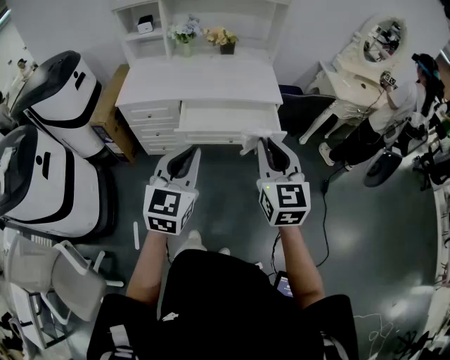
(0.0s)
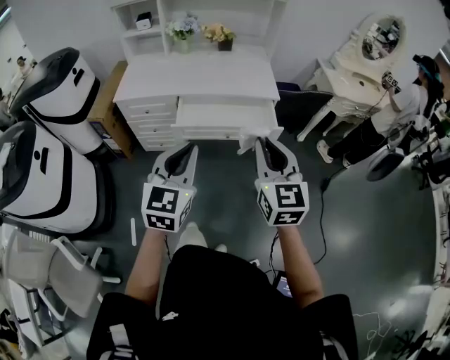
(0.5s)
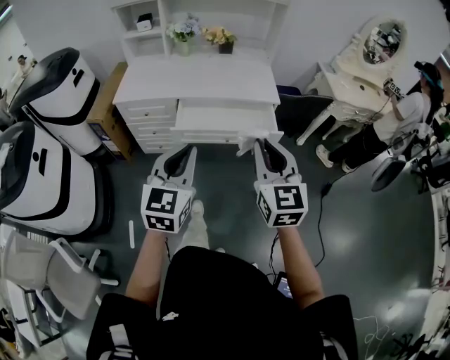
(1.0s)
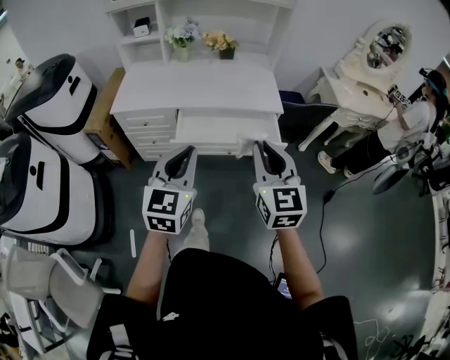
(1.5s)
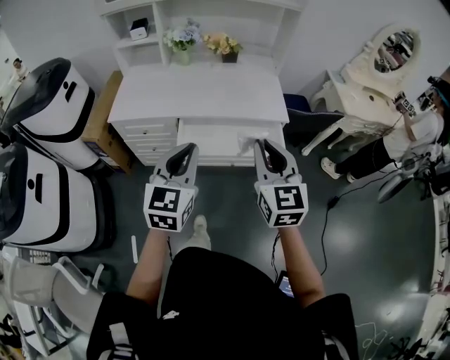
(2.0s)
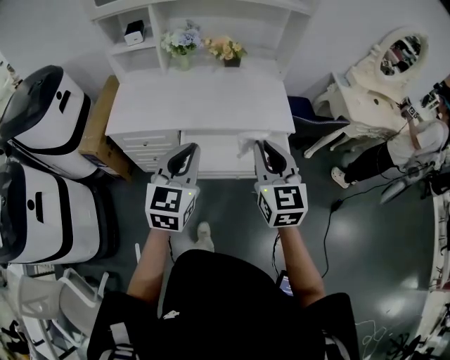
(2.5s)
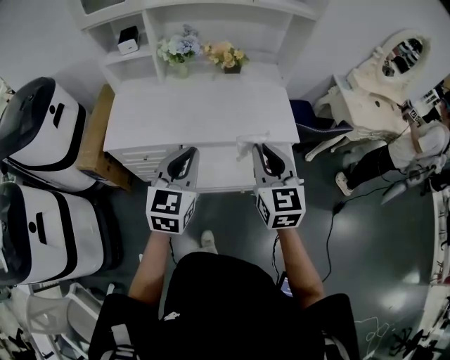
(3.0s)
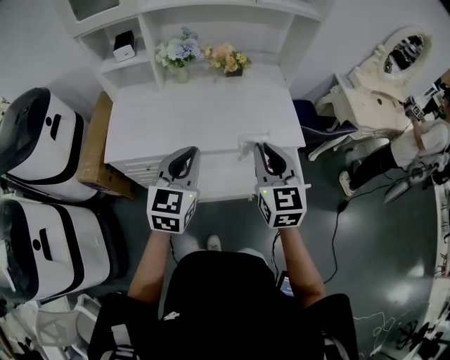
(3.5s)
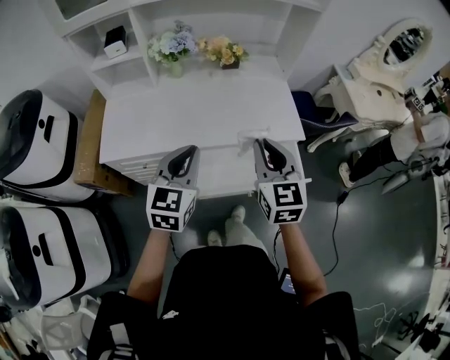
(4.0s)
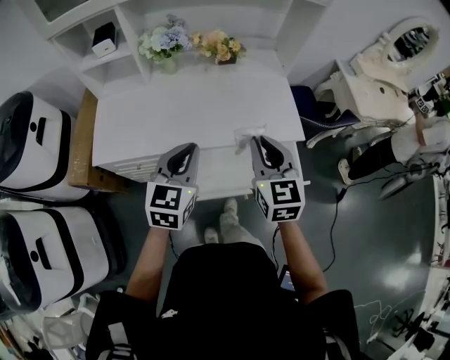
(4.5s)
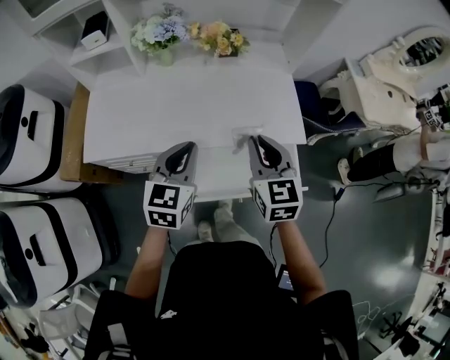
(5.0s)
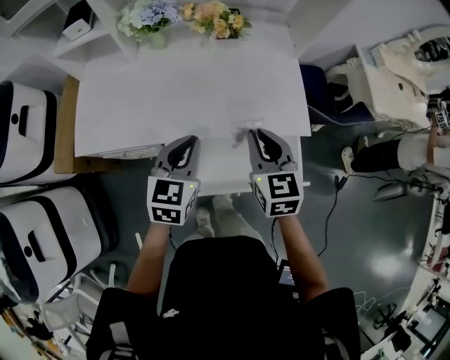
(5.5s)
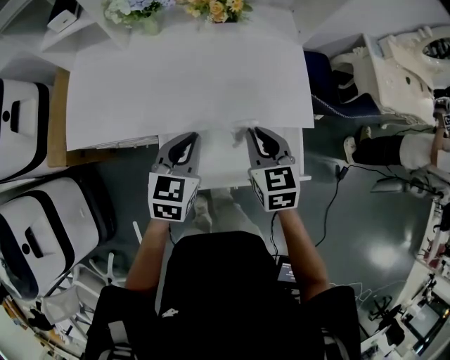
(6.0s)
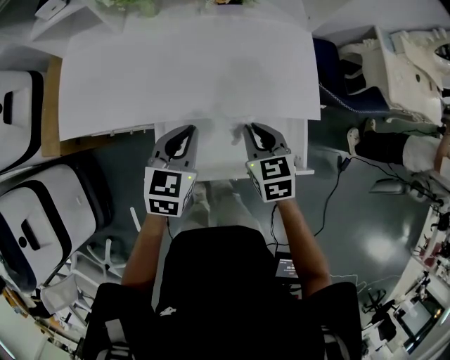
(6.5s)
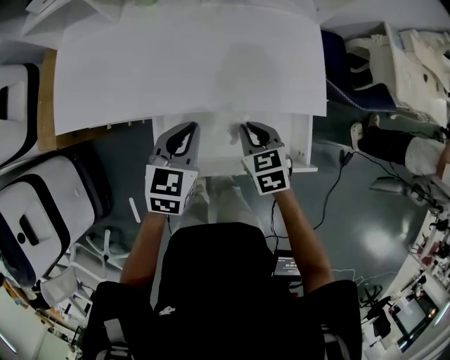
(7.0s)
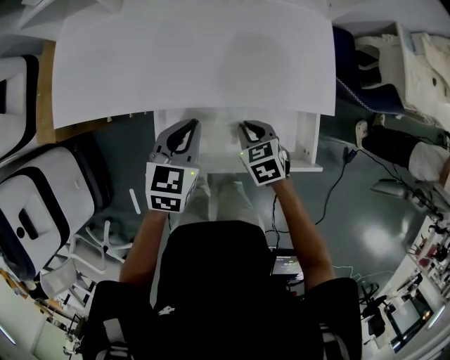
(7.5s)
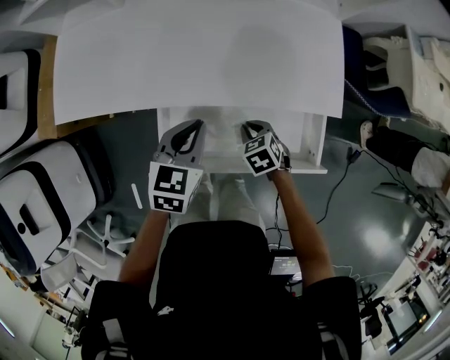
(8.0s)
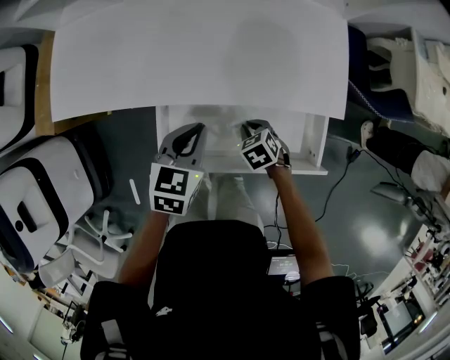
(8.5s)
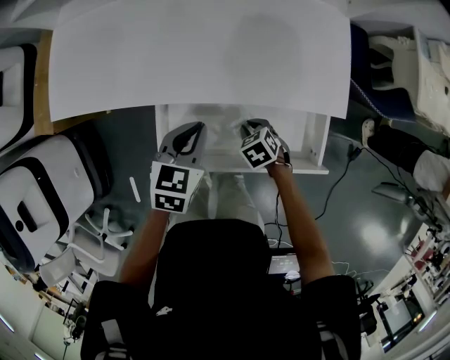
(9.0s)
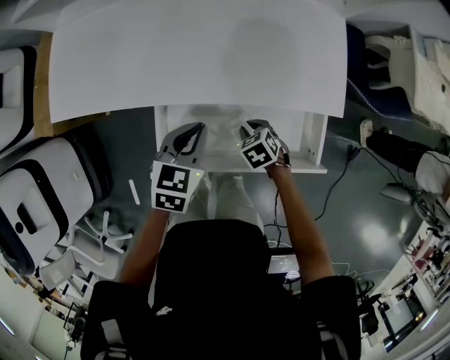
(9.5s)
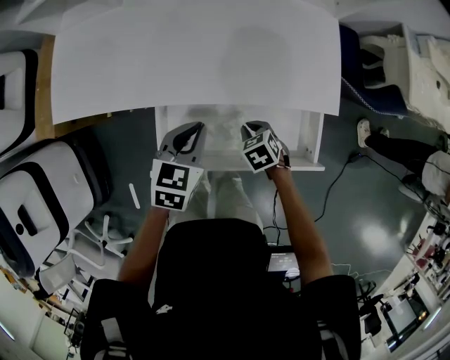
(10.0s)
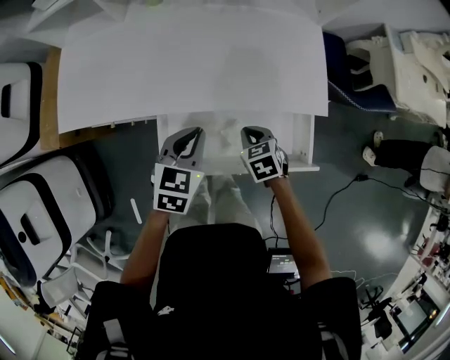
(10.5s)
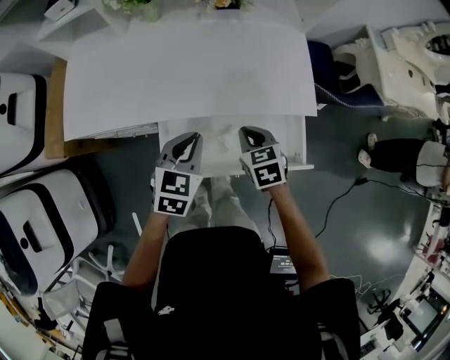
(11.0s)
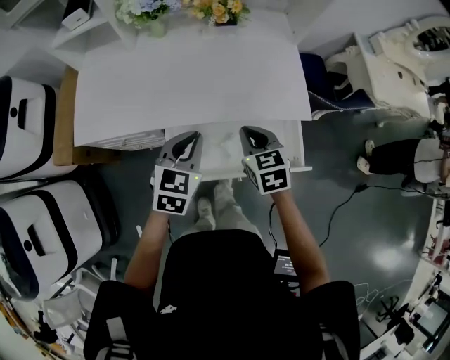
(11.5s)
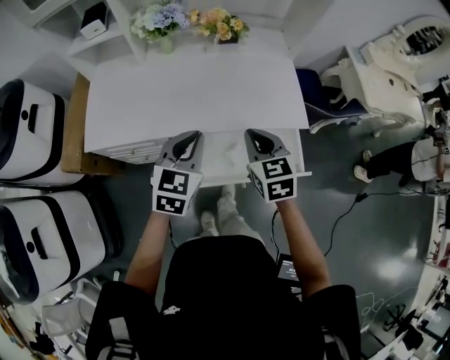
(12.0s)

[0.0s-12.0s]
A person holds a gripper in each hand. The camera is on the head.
0.0s to 2.0s: The two grippers go some 15 cm forward.
2.0s to 4.0s: The grippers both shift forward by roughly 25 cm.
4.0s to 6.0s: The left gripper goes roughly 20 cm downward, forward and to the right. Meanwhile the right gripper shifts roughly 20 cm downward and forward, and rotates roughly 20 degrees.
6.0s to 8.0s: The left gripper travels downward by roughly 10 cm. Meanwhile the right gripper moves downward, roughly 25 cm, and tilts its fingers some 30 degrees downward.
8.0s to 10.0s: The grippers make only small movements.
10.0s to 12.0s: The right gripper goes approximately 30 cm upward, and tips its fingers upward by approximately 40 degrees, while the left gripper shifts some 20 cm upward, and changes its angle by approximately 20 degrees.

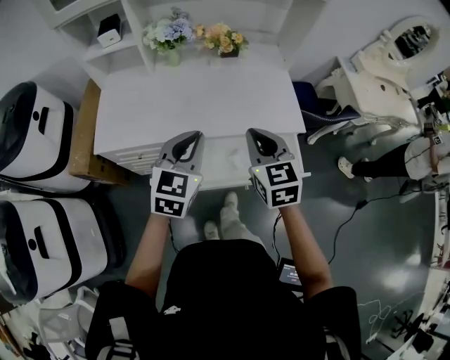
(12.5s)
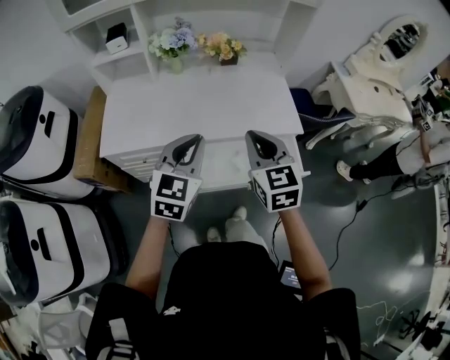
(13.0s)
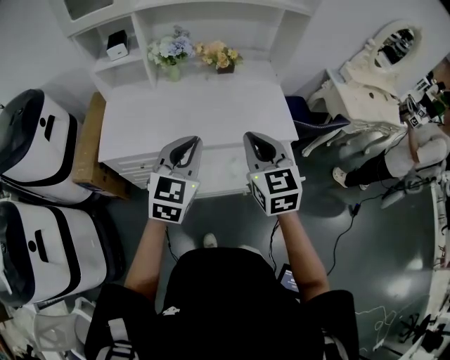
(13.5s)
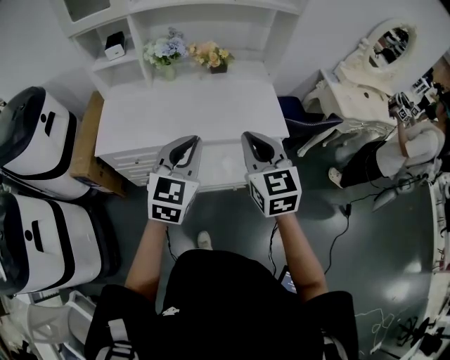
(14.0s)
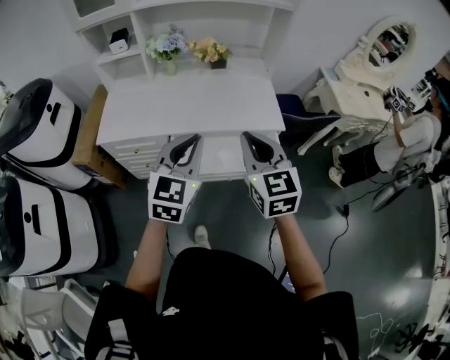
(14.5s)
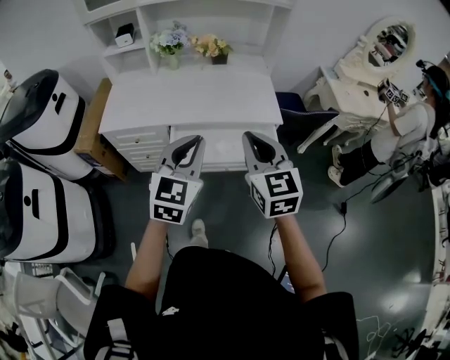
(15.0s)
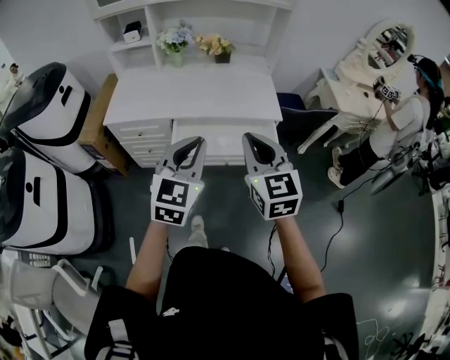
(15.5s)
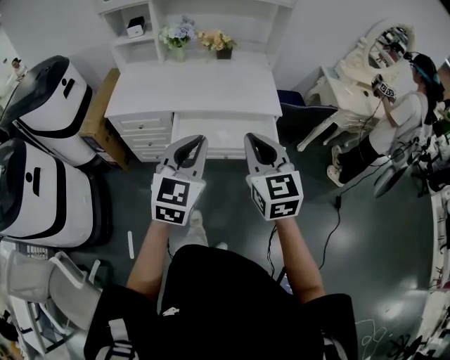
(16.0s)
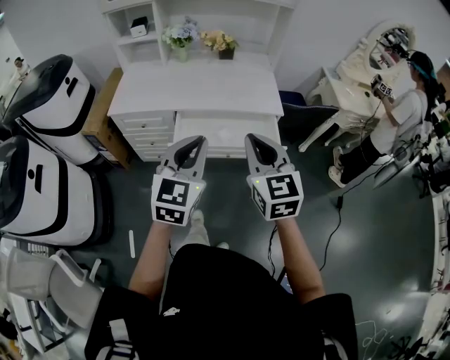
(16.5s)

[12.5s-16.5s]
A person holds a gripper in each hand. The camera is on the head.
12.5s to 14.5s: The two grippers go approximately 20 cm backward, upward and to the right.
14.5s to 16.5s: The grippers both shift backward by approximately 15 cm.

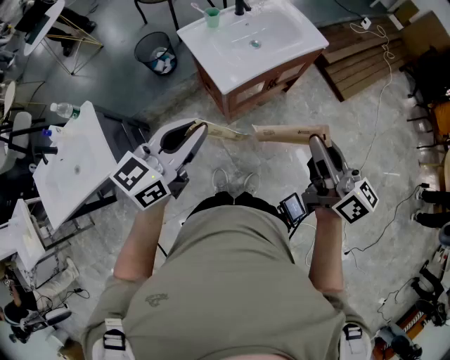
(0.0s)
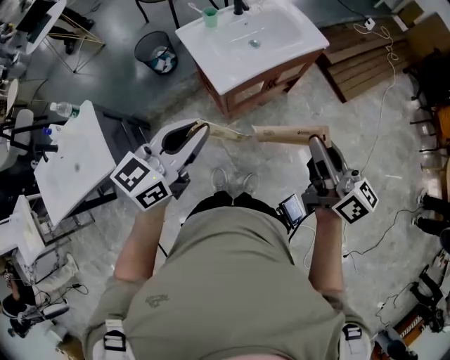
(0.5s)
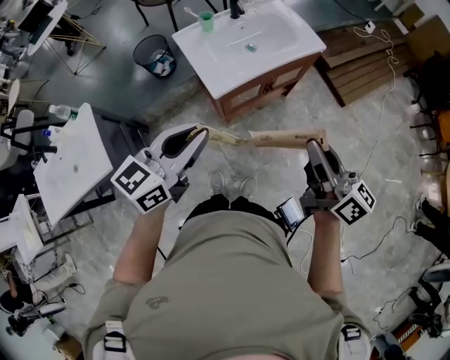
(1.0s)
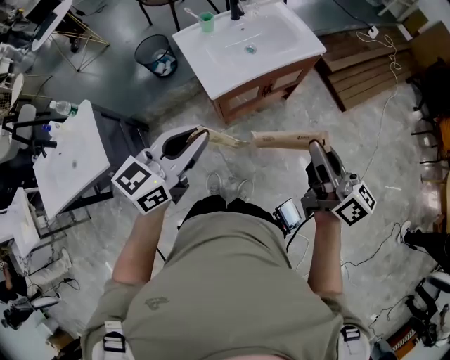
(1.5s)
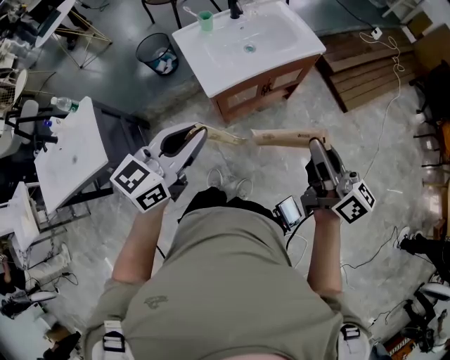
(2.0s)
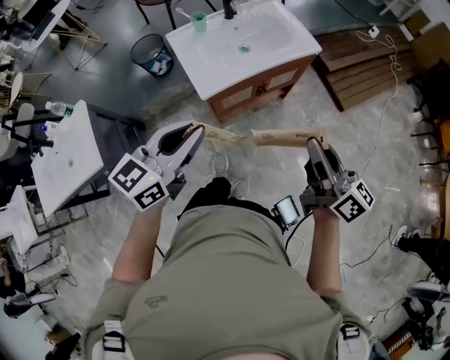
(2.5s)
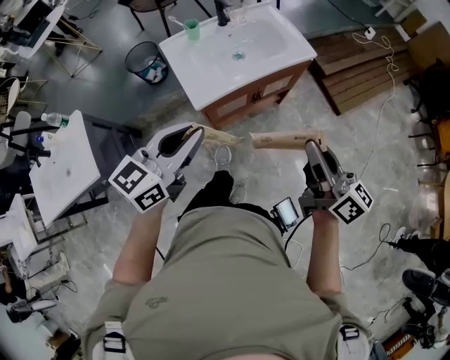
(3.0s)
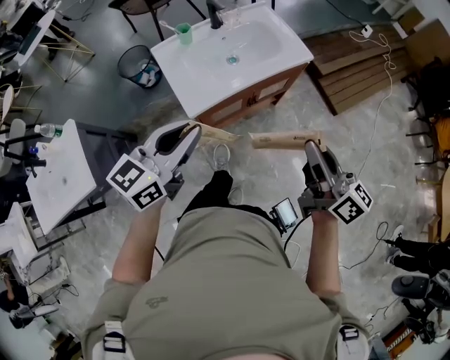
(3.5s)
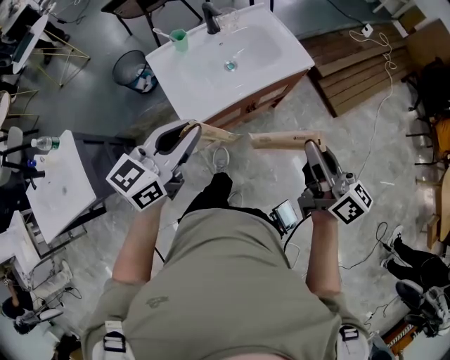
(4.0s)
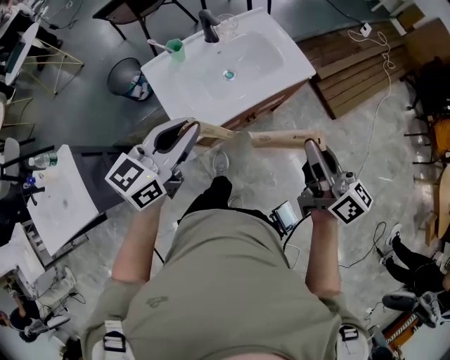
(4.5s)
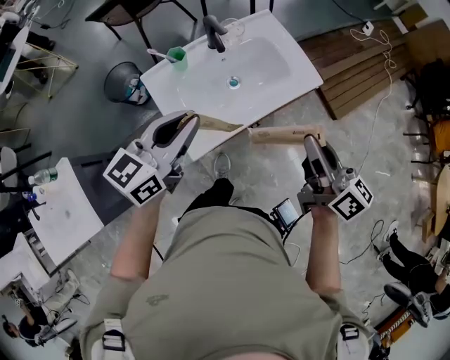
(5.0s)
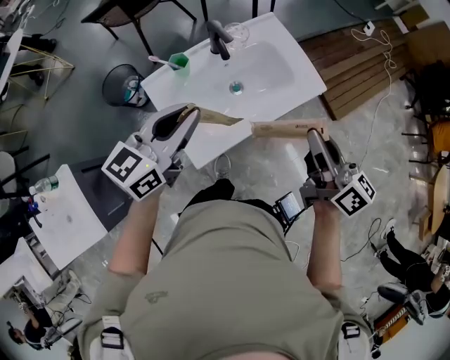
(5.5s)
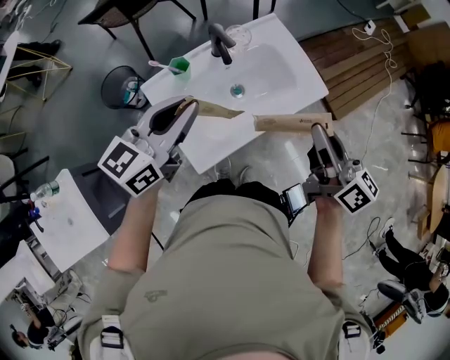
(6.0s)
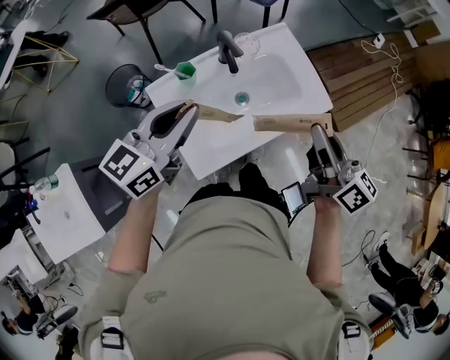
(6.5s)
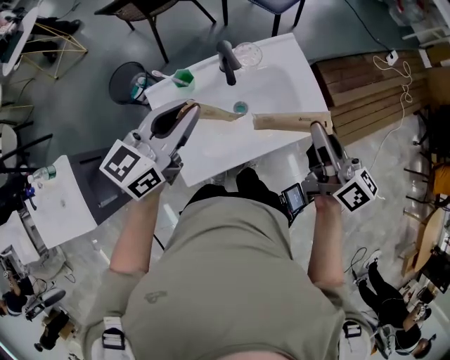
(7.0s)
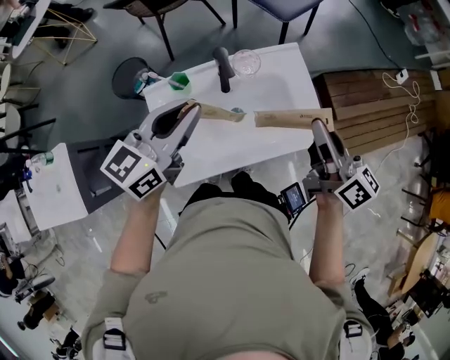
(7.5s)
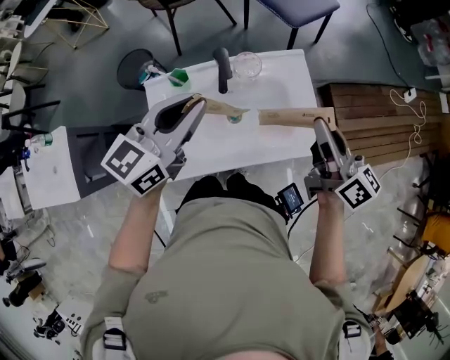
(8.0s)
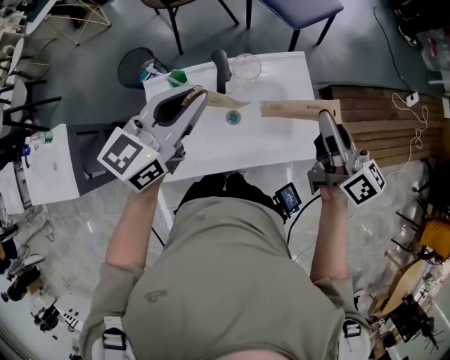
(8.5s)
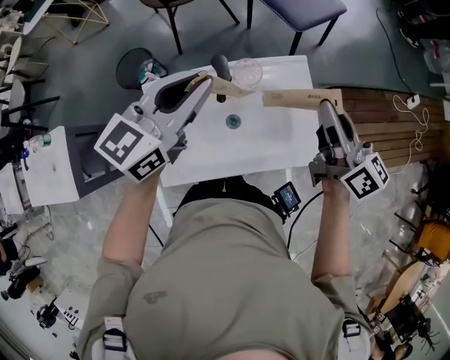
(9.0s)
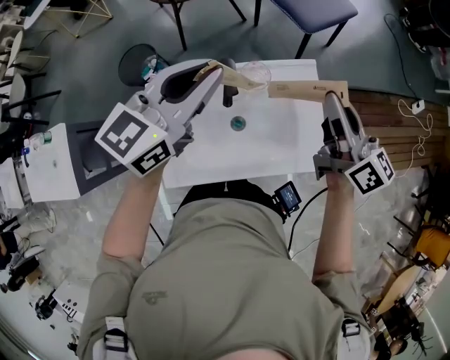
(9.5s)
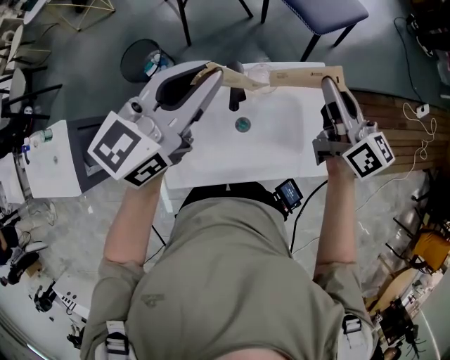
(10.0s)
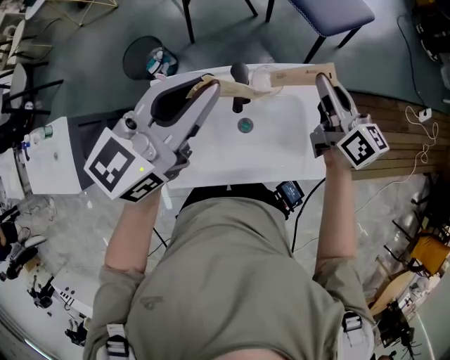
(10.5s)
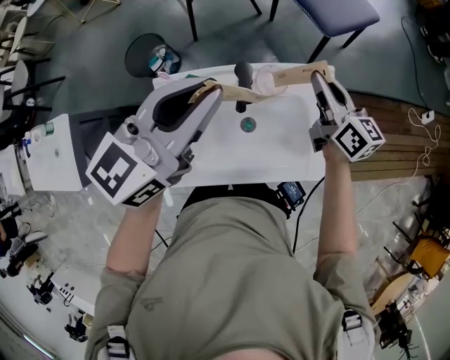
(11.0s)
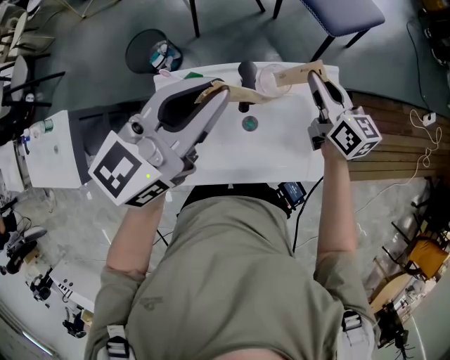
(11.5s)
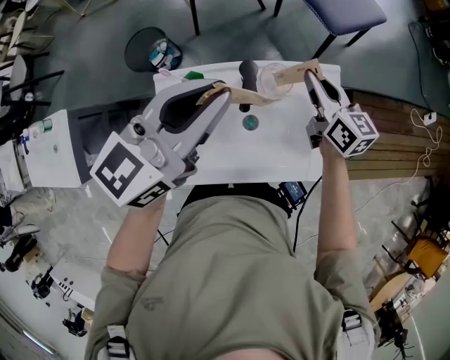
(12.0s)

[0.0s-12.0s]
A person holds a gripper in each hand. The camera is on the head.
0.0s to 2.0s: Both grippers travel together to the right, approximately 10 cm.
2.0s to 4.0s: Both grippers move forward, roughly 15 cm.
4.0s to 6.0s: The two grippers go some 25 cm forward and to the left.
6.0s to 8.0s: The left gripper shifts roughly 10 cm forward and to the right, and swivels some 20 degrees; the right gripper shifts approximately 20 cm forward, and swivels approximately 20 degrees.
8.0s to 10.0s: Both grippers travel together forward, some 15 cm.
10.0s to 12.0s: The right gripper moves downward, about 10 cm.
